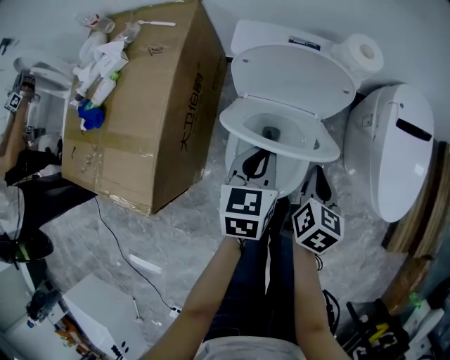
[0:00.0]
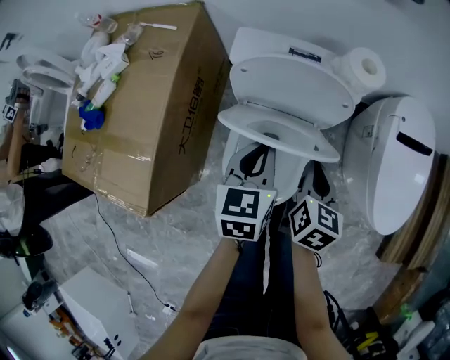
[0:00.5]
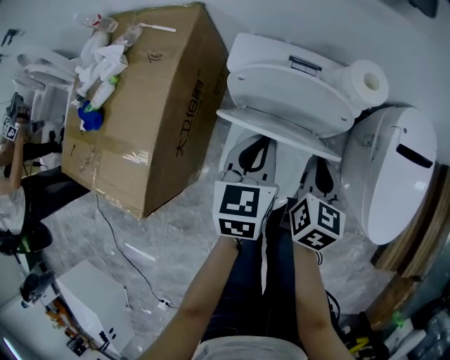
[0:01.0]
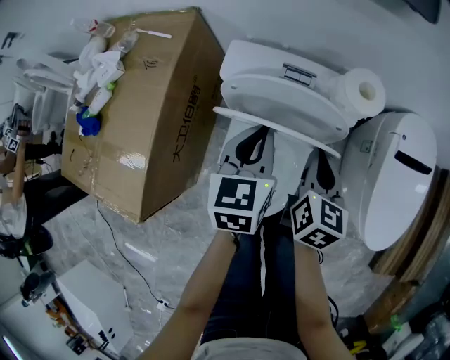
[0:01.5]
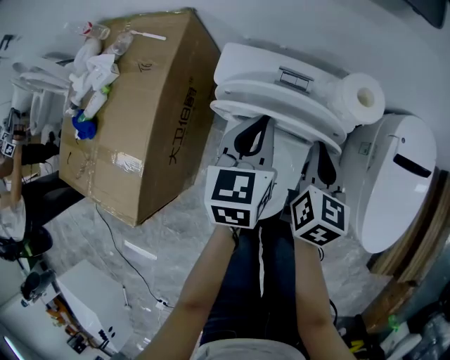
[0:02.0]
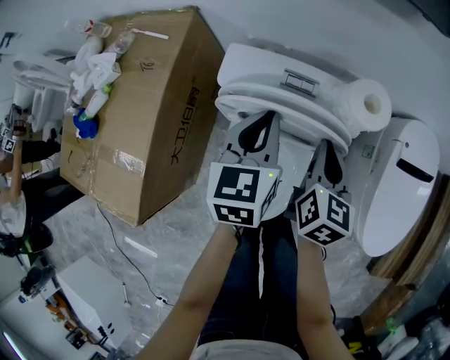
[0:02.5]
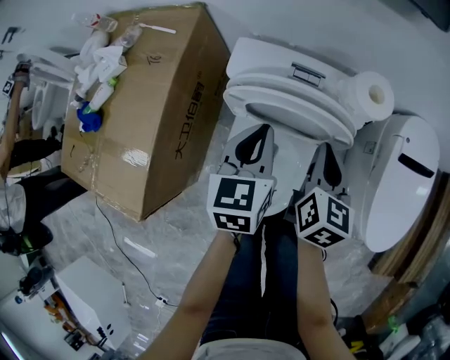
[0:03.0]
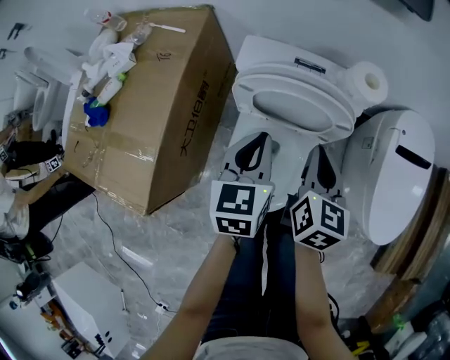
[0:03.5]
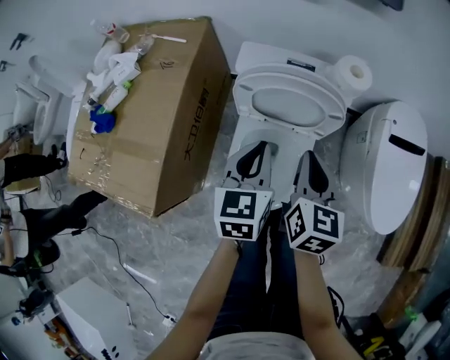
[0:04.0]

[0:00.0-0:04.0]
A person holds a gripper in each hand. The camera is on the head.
0:00.0 to 0:02.0: The grippers both shift forward by some 15 cm.
0:02.0 to 0:04.0: The right gripper shifts some 15 cm backward, upward and to the left. Meanwhile the left gripper is displaced backward by approximately 15 cm.

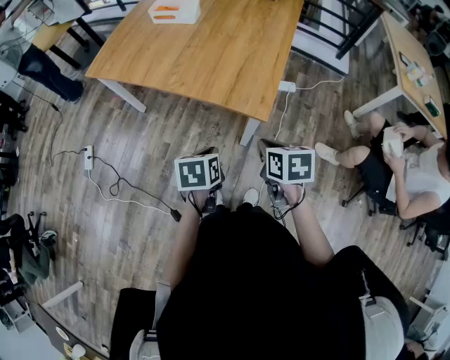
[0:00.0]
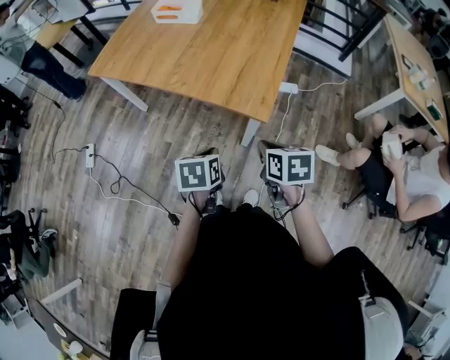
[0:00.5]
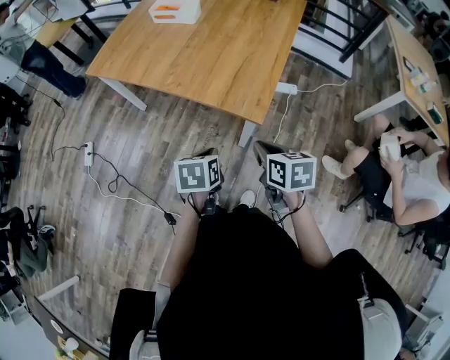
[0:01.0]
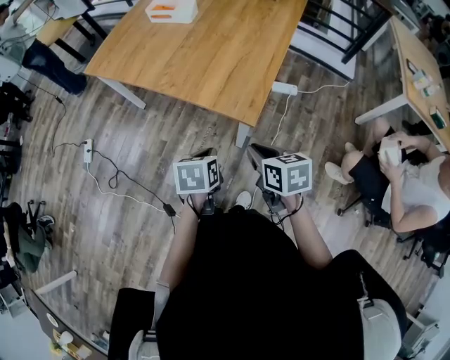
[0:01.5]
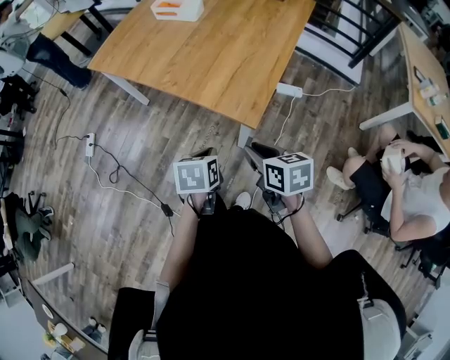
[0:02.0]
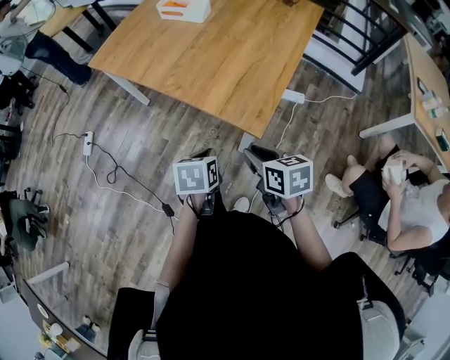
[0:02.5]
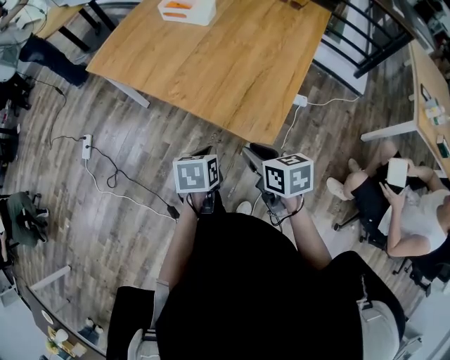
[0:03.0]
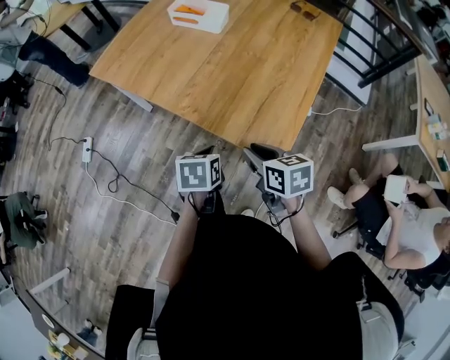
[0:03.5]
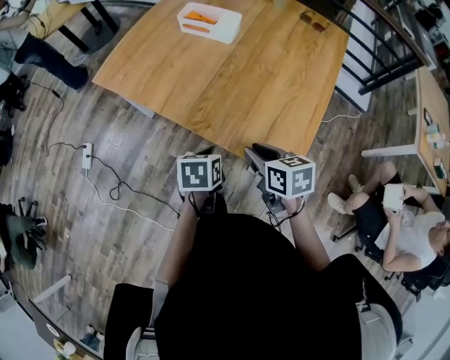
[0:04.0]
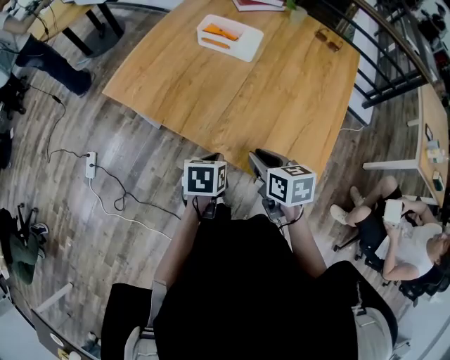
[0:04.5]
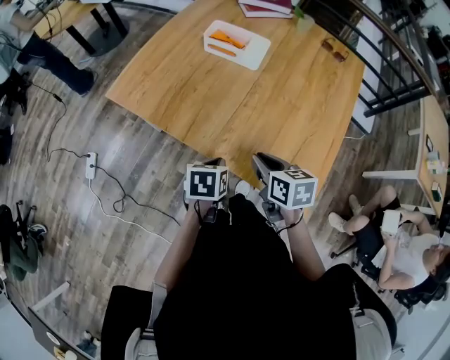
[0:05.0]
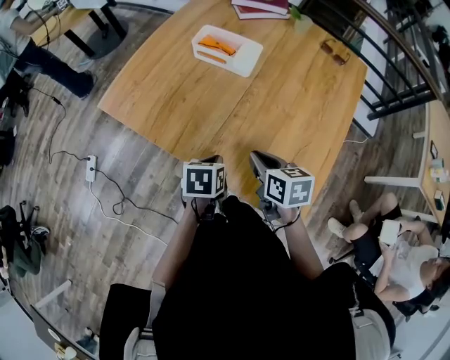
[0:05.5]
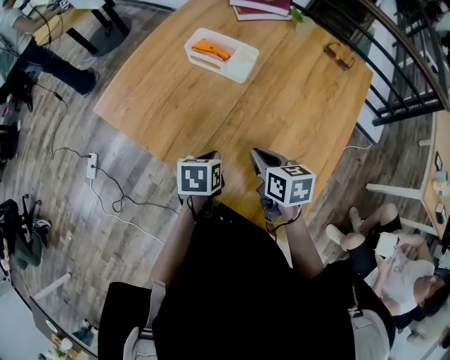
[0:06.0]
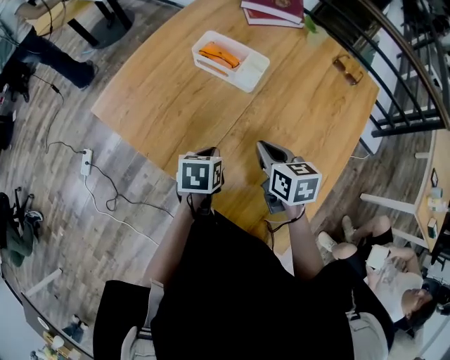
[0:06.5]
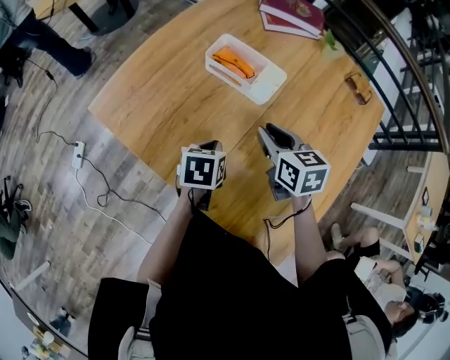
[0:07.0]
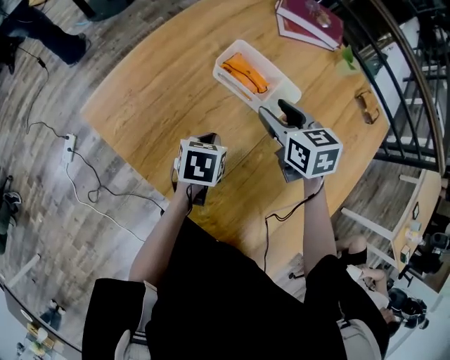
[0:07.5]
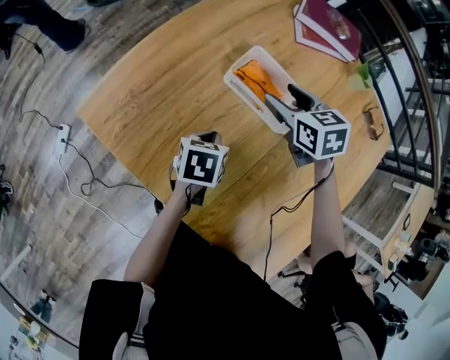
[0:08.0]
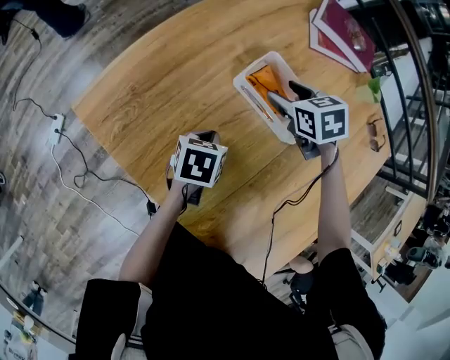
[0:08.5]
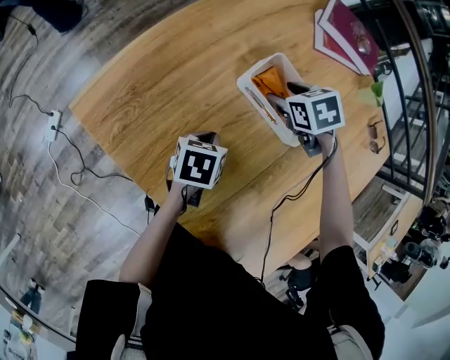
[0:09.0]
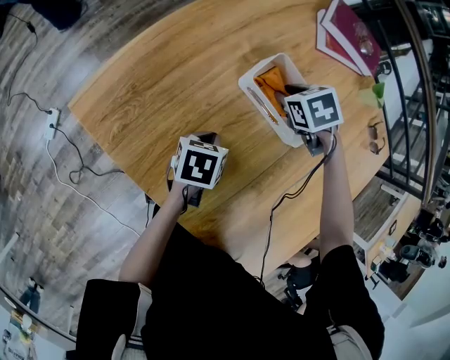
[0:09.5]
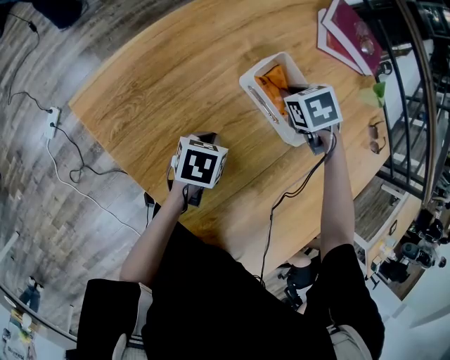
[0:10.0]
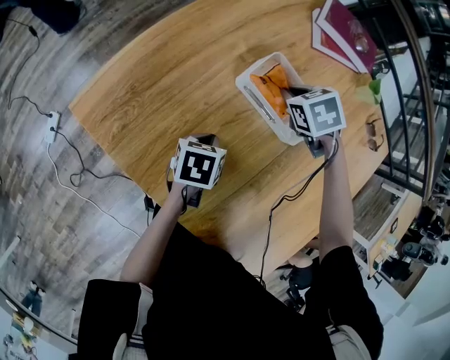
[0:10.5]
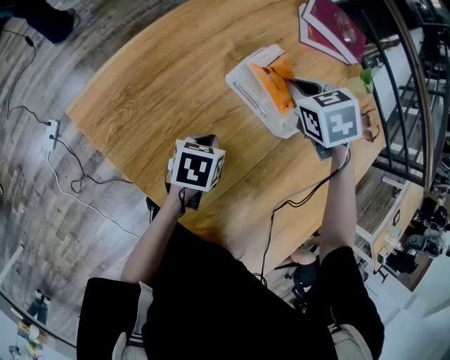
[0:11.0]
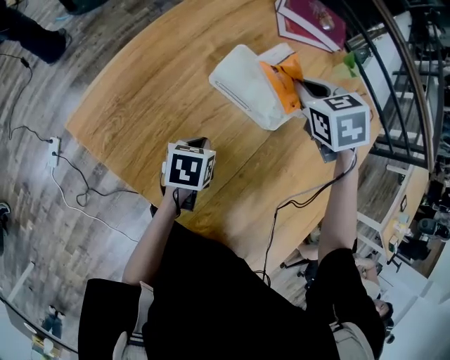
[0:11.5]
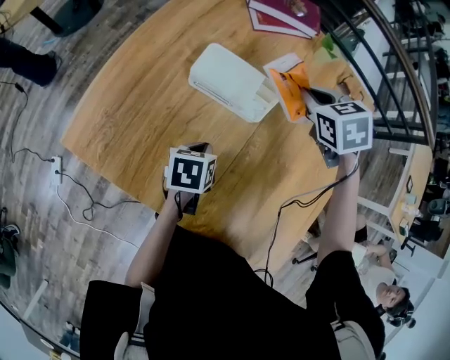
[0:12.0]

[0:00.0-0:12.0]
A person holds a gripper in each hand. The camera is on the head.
0:00.0 to 0:02.0: The left gripper is displaced to the right by approximately 5 cm.
0:02.0 to 0:04.0: Both grippers travel together forward and to the left, approximately 25 cm.
0:04.0 to 0:06.0: The grippers both shift forward by approximately 20 cm.
0:06.0 to 0:08.0: The right gripper shifts some 35 cm forward, rotates some 30 degrees, and opens up, while the left gripper heads forward and to the left, covering roughly 25 cm.
0:08.0 to 0:10.0: The left gripper moves approximately 5 cm, while the right gripper moves downward, approximately 10 cm, tilts its fingers roughly 30 degrees downward, and closes up.
0:10.0 to 0:12.0: The left gripper changes place by some 10 cm, while the right gripper is displaced upward by roughly 15 cm, and changes its angle by some 30 degrees.

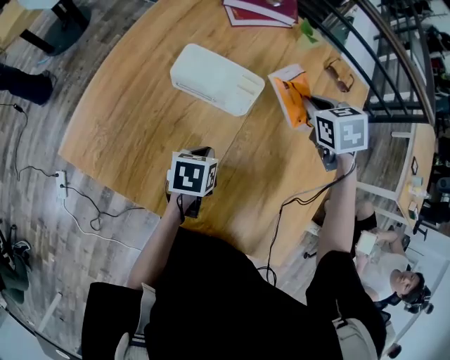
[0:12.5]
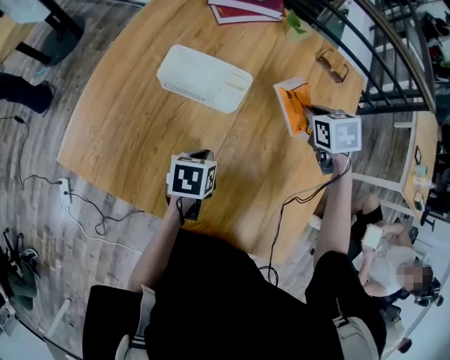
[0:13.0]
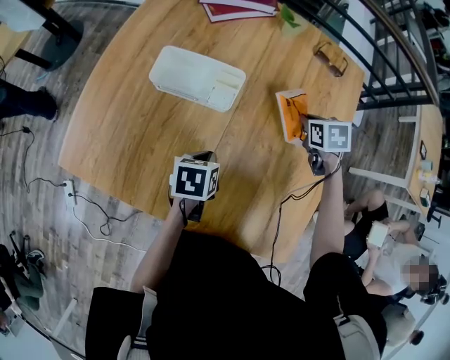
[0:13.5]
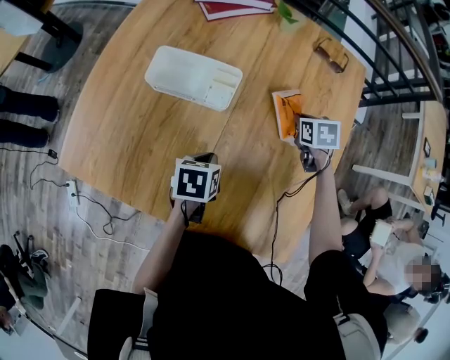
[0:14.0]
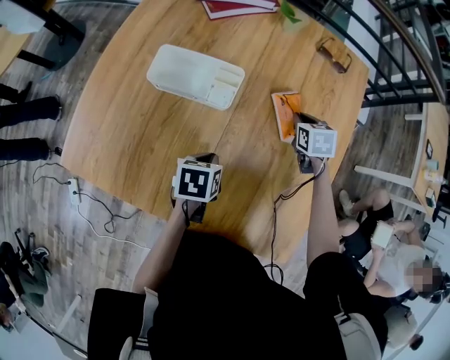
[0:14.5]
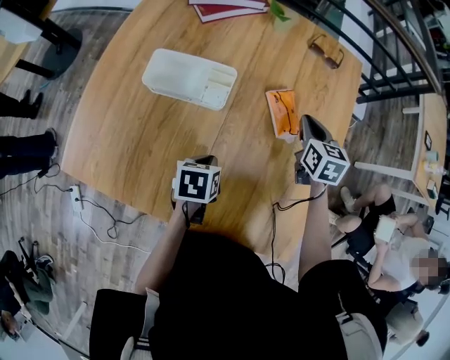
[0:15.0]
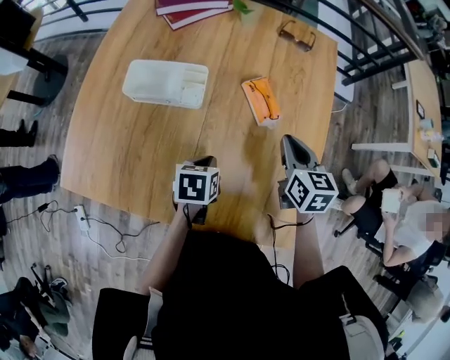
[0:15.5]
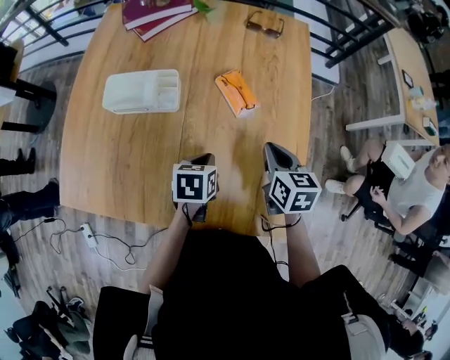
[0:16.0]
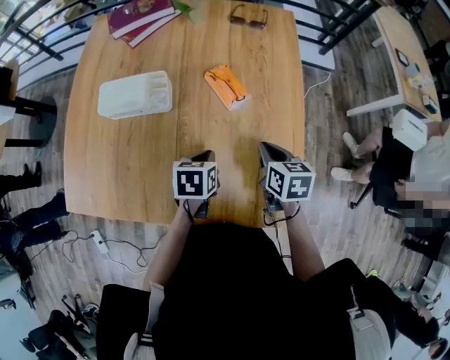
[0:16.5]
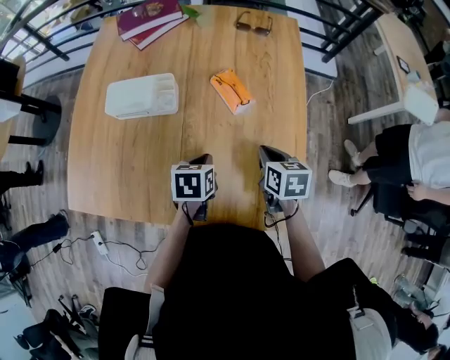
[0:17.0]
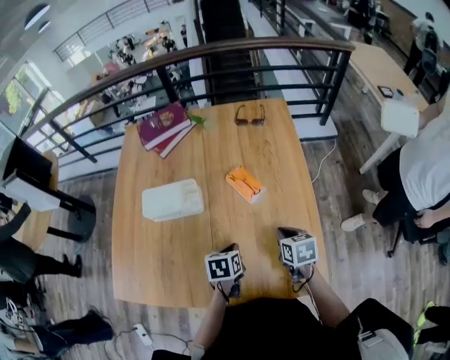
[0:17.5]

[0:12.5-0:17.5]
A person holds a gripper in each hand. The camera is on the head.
0:12.5 to 0:15.0: The right gripper travels to the right and downward by about 15 cm, and rotates some 40 degrees; the left gripper is displaced to the right by roughly 5 cm.
0:15.0 to 0:17.5: The left gripper travels backward and to the right by some 15 cm. Meanwhile the right gripper moves backward, about 30 cm, and turns by roughly 30 degrees.

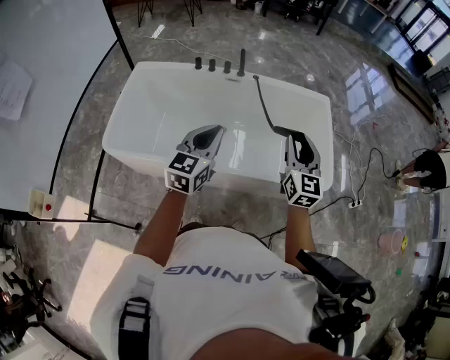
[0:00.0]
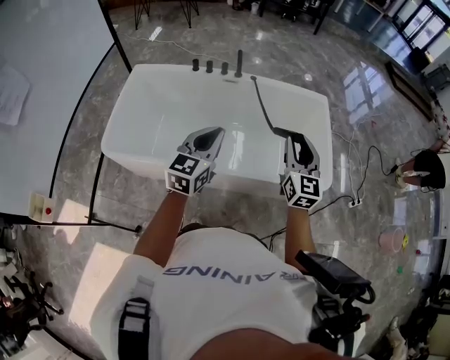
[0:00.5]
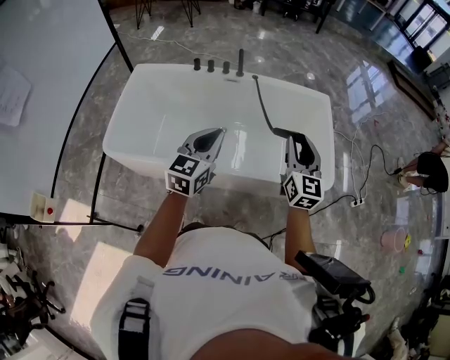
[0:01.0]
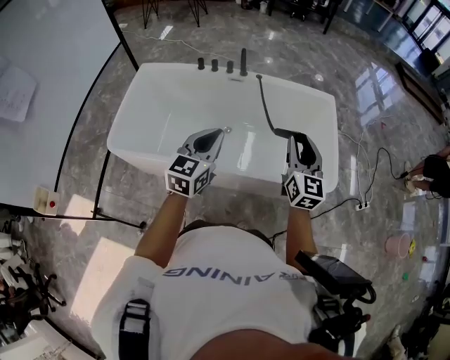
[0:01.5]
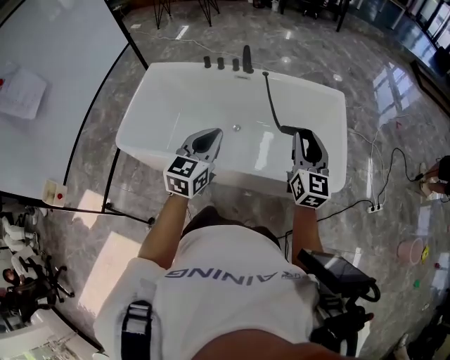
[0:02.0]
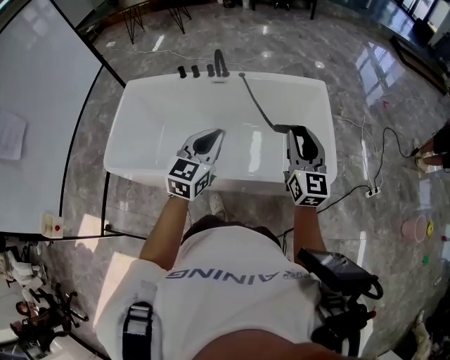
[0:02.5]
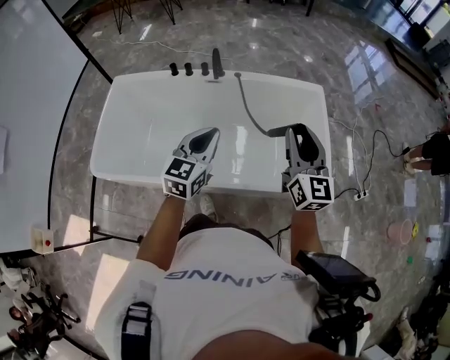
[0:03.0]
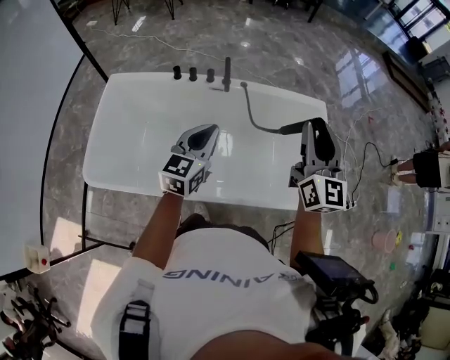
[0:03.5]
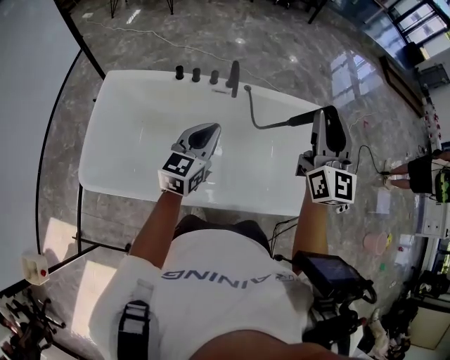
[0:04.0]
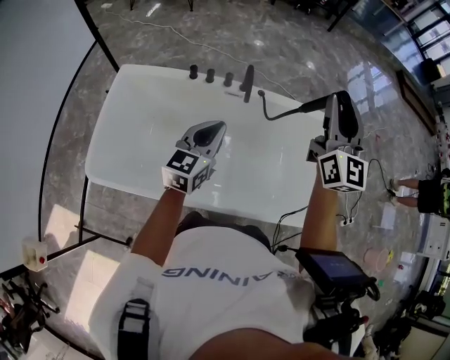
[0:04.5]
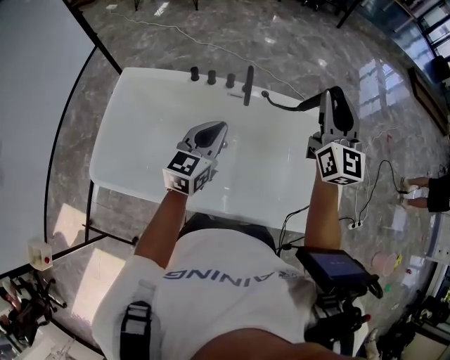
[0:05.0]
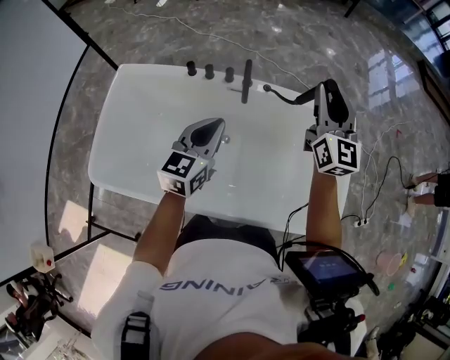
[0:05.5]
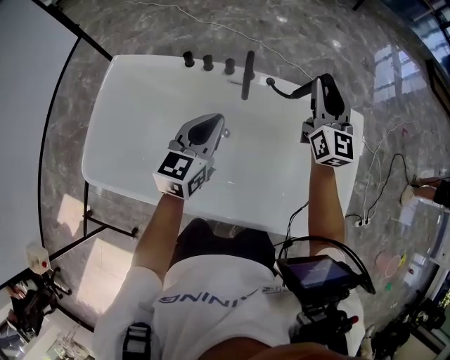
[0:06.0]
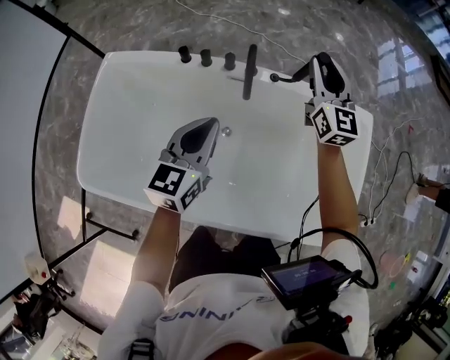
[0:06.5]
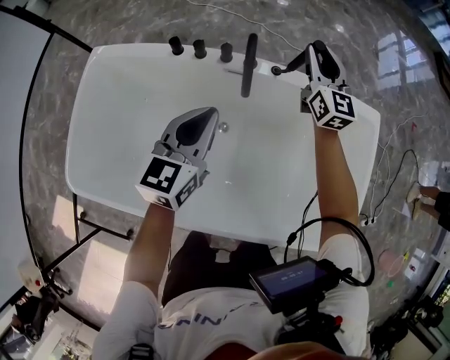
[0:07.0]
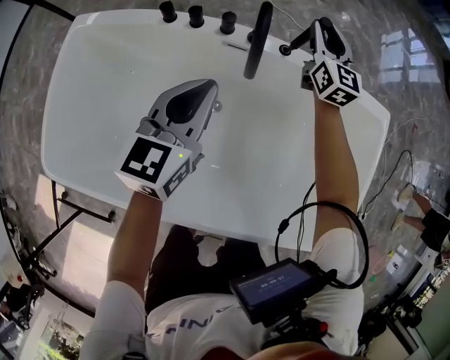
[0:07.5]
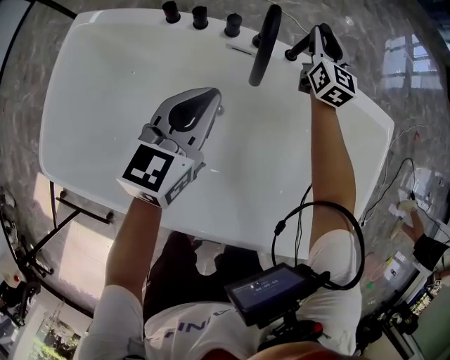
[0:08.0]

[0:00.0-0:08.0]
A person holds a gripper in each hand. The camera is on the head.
0:00.0 to 0:02.0: The two grippers go some 10 cm to the right.
0:02.0 to 0:04.0: The right gripper travels forward, to the left and upward by approximately 30 cm; the left gripper shifts approximately 30 cm forward and to the left.
0:04.0 to 0:06.0: The right gripper heads forward and downward, covering some 30 cm, while the left gripper heads forward and downward, covering approximately 15 cm.
0:06.0 to 0:08.0: The left gripper heads downward and forward, covering about 20 cm. The right gripper heads downward and forward, covering approximately 40 cm.
